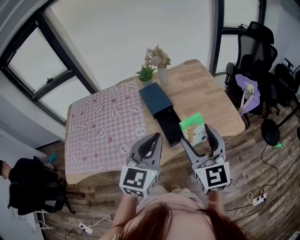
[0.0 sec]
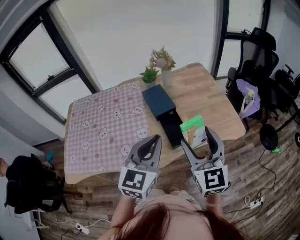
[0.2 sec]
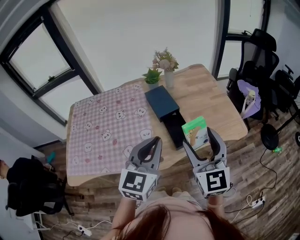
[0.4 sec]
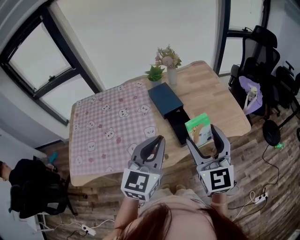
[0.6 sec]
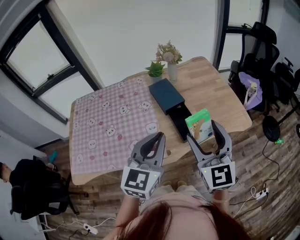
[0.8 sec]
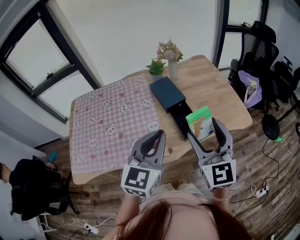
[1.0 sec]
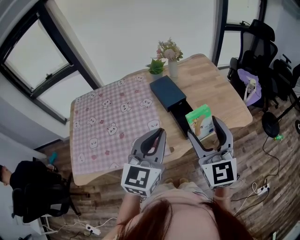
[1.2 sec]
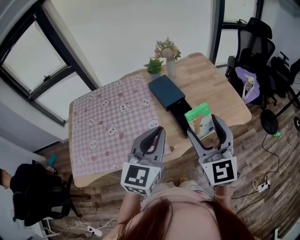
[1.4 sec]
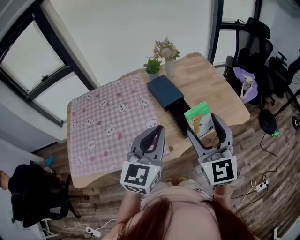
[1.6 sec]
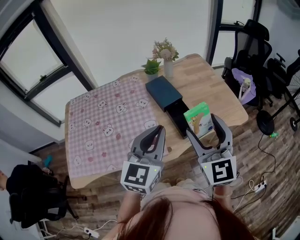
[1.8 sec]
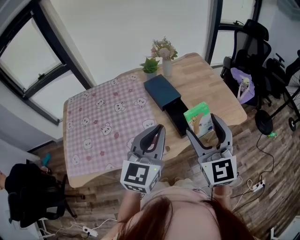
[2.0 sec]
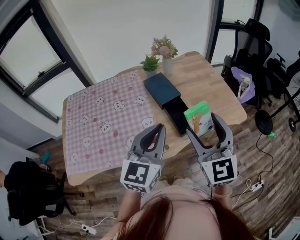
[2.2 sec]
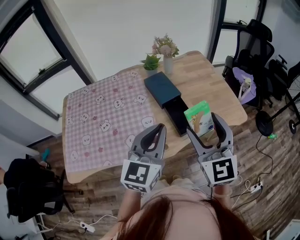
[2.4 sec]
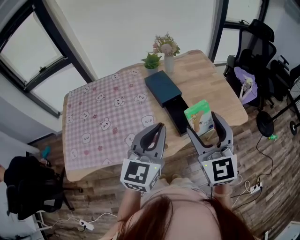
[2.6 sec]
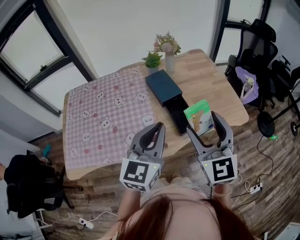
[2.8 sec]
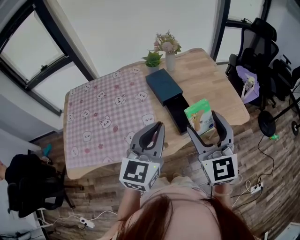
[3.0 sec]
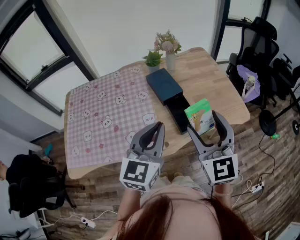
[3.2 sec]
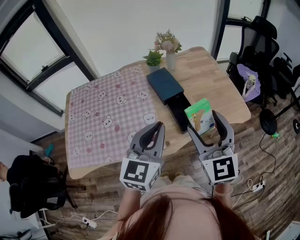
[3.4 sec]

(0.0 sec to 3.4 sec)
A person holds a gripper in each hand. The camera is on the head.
0.0 sec - 1.6 sec: The two grippers go about 10 cm to the left.
1.6 sec - 3.4 sec: The grippers make only small movements.

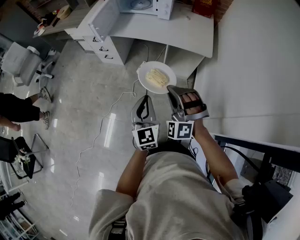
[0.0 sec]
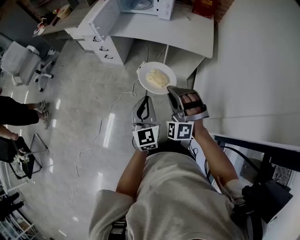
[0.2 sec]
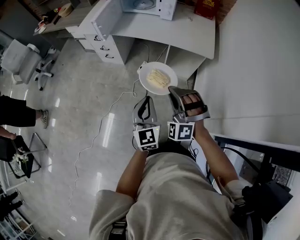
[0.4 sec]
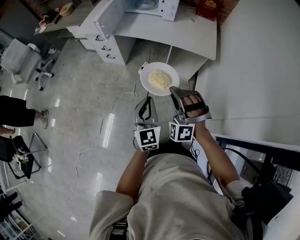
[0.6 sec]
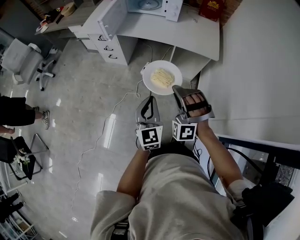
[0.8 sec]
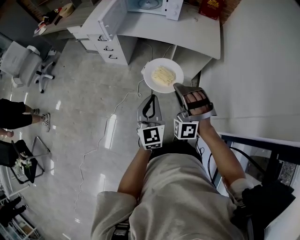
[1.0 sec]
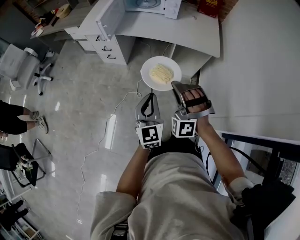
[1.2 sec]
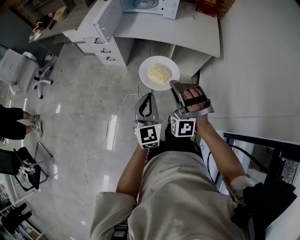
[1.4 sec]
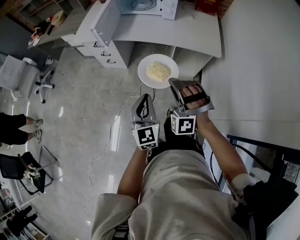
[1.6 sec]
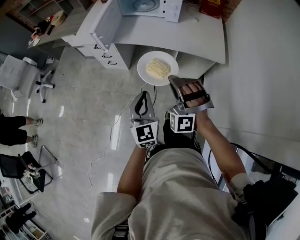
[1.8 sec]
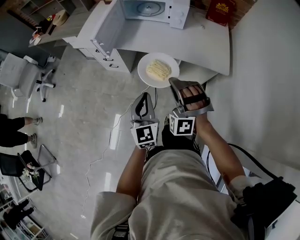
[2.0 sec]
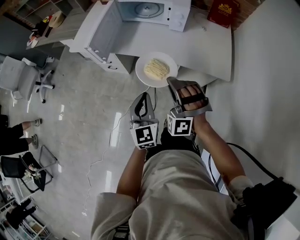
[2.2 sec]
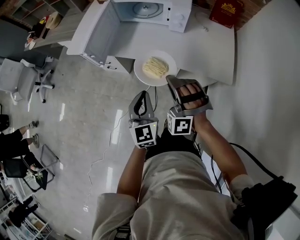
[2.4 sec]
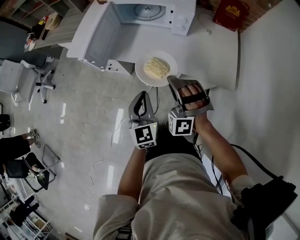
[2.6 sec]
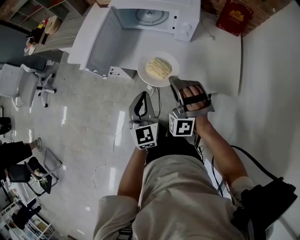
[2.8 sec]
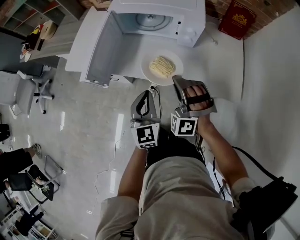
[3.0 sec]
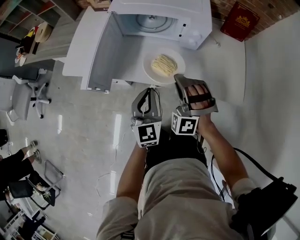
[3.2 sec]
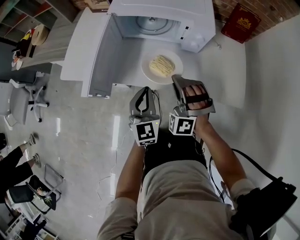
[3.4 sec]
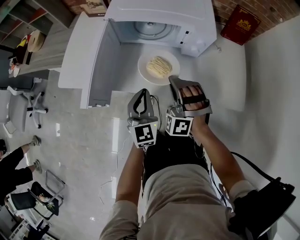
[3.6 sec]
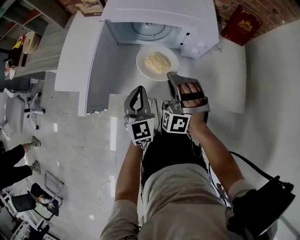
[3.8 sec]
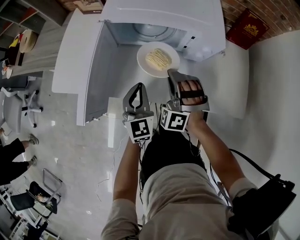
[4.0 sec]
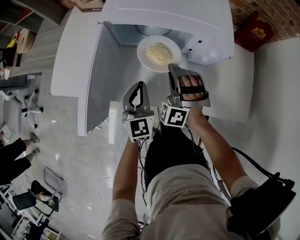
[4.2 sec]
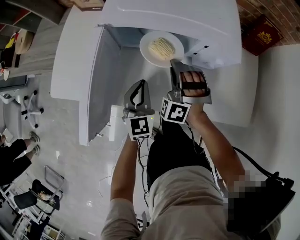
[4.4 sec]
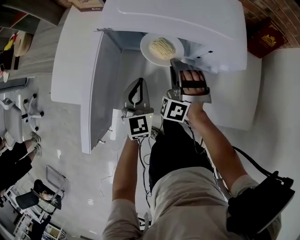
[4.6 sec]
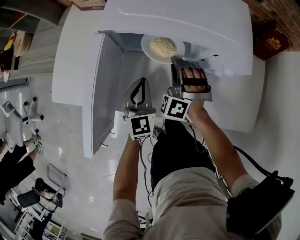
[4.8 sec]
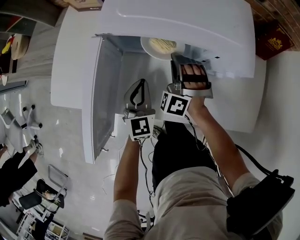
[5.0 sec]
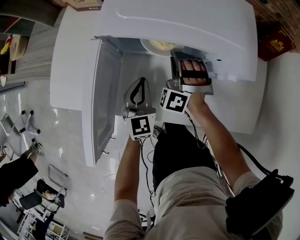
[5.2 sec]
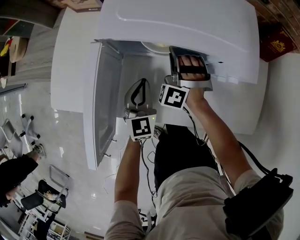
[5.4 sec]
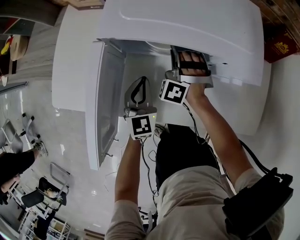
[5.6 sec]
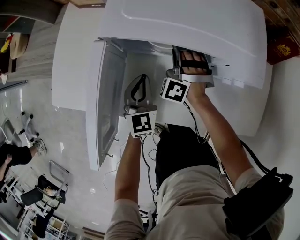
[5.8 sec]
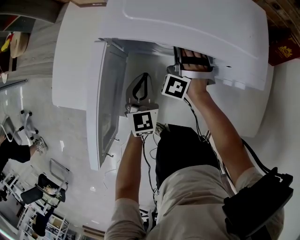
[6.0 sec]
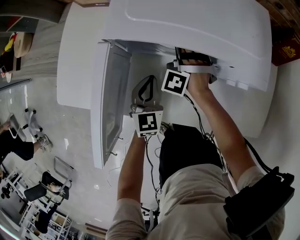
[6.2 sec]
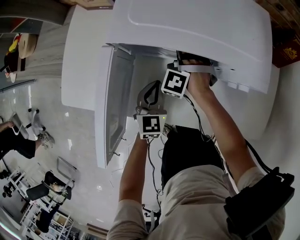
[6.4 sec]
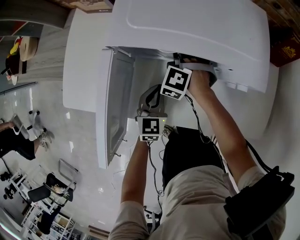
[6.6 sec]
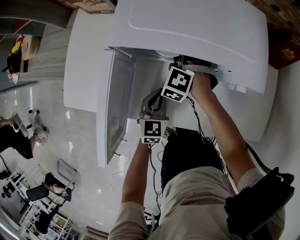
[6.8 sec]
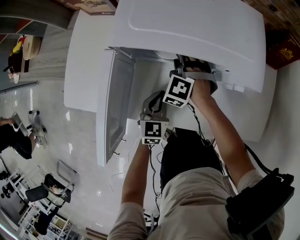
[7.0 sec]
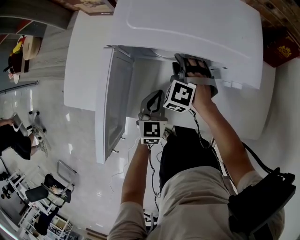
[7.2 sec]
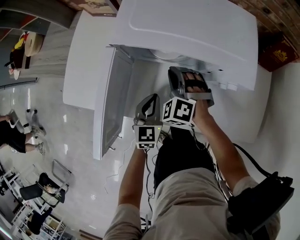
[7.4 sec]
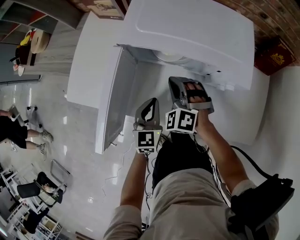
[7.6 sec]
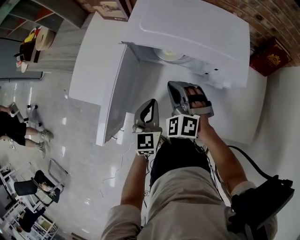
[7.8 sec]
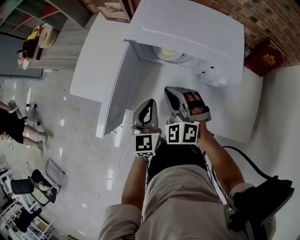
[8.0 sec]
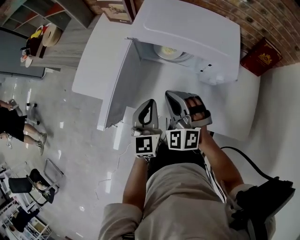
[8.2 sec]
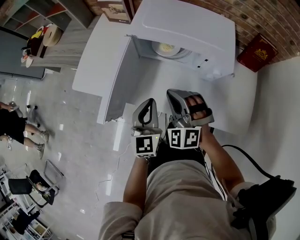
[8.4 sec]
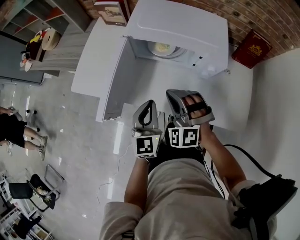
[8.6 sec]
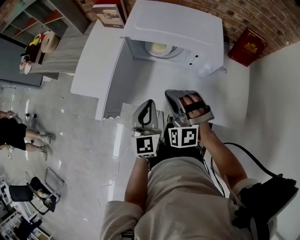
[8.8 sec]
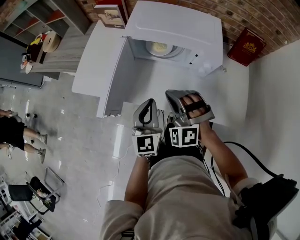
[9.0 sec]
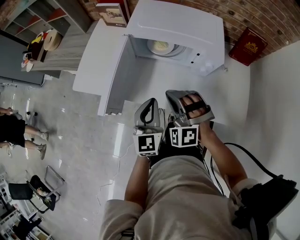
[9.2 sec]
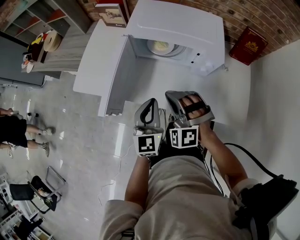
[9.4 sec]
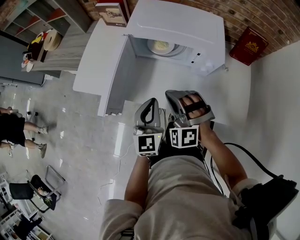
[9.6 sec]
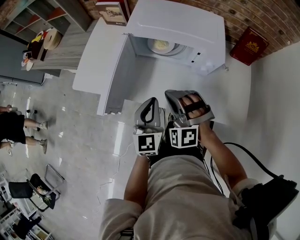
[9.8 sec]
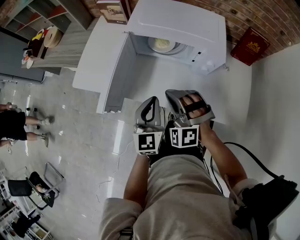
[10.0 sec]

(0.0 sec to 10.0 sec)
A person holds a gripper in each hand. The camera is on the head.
0.0 sec - 1.4 sec: The left gripper shifts by approximately 10 cm.
1.4 sec - 2.8 sec: The left gripper shifts by about 35 cm.
2.8 sec - 4.2 sec: The left gripper changes place by about 30 cm.
4.2 sec - 5.8 sec: The left gripper changes place by approximately 10 cm.
5.8 sec - 7.2 sec: The left gripper changes place by about 5 cm.
7.2 sec - 8.6 sec: The left gripper travels upward by some 15 cm, and rotates some 20 degrees.

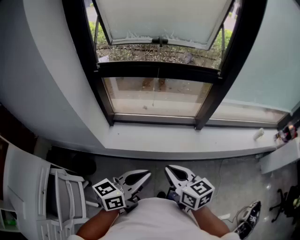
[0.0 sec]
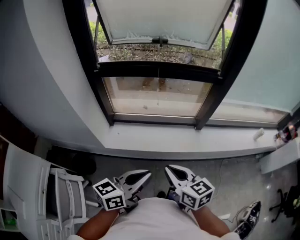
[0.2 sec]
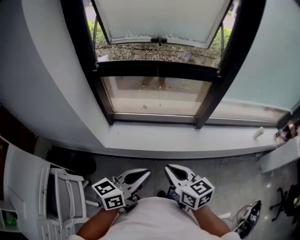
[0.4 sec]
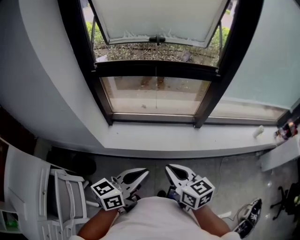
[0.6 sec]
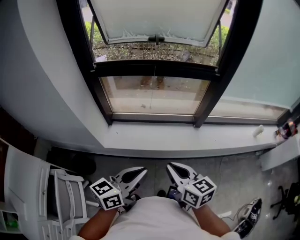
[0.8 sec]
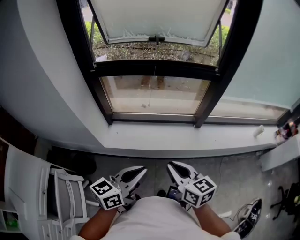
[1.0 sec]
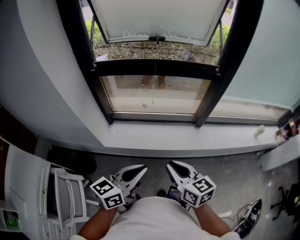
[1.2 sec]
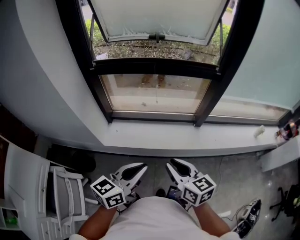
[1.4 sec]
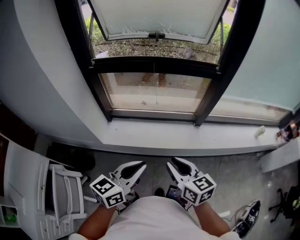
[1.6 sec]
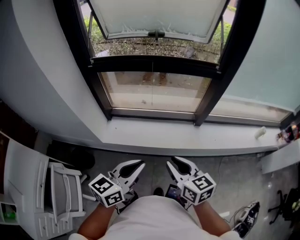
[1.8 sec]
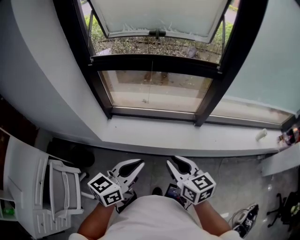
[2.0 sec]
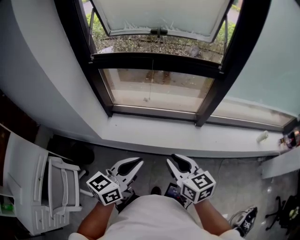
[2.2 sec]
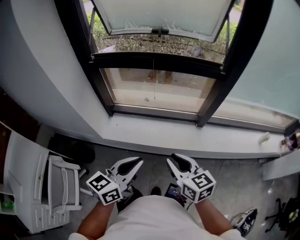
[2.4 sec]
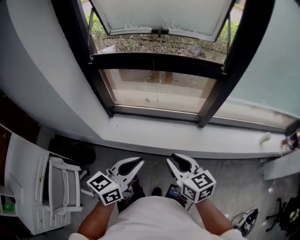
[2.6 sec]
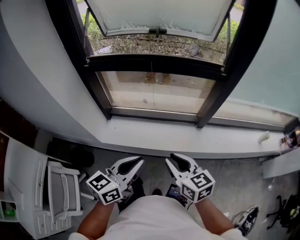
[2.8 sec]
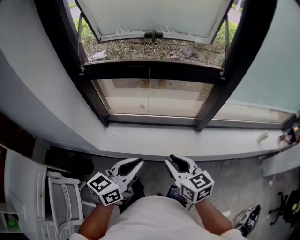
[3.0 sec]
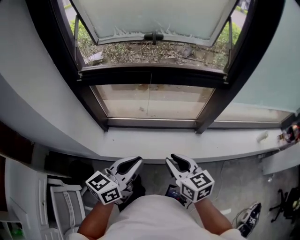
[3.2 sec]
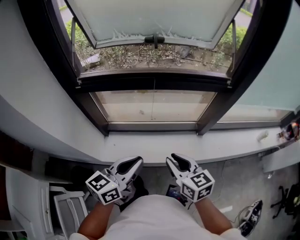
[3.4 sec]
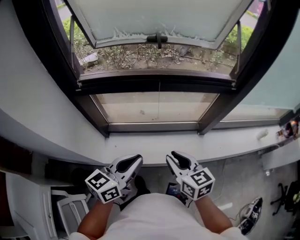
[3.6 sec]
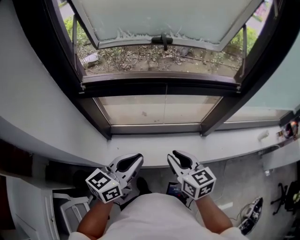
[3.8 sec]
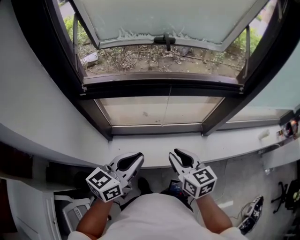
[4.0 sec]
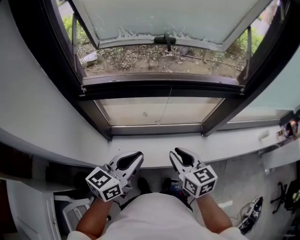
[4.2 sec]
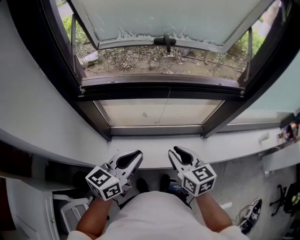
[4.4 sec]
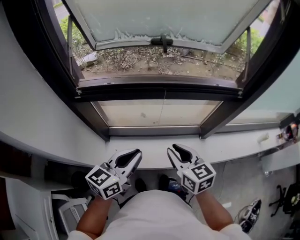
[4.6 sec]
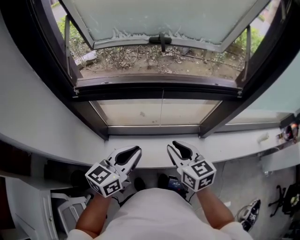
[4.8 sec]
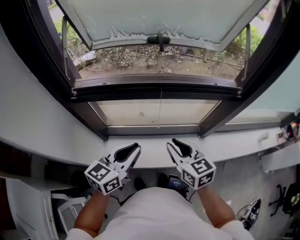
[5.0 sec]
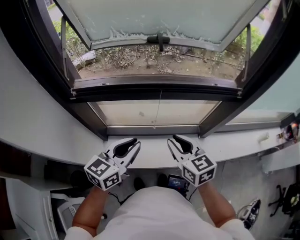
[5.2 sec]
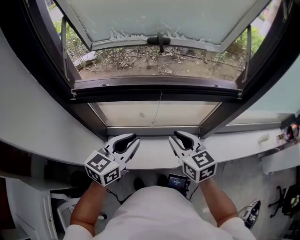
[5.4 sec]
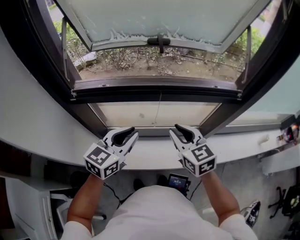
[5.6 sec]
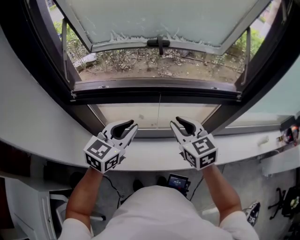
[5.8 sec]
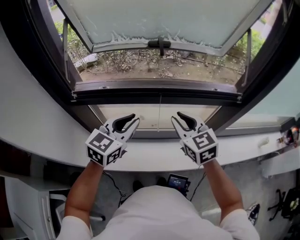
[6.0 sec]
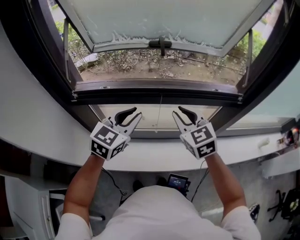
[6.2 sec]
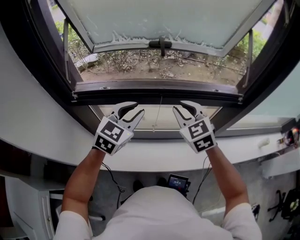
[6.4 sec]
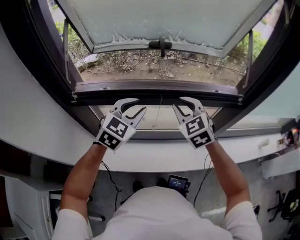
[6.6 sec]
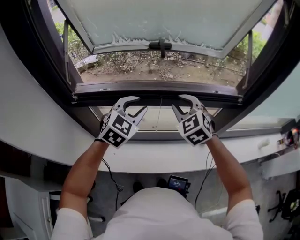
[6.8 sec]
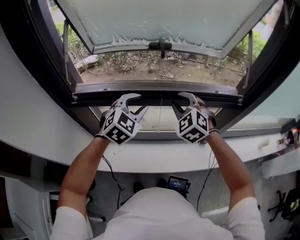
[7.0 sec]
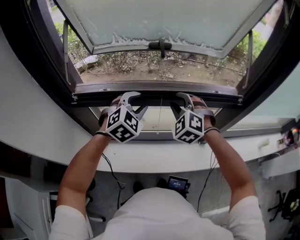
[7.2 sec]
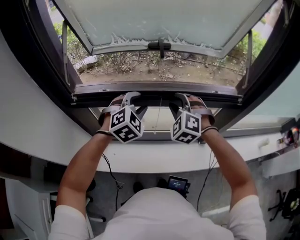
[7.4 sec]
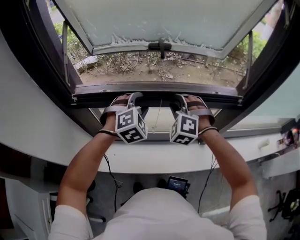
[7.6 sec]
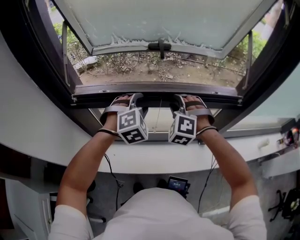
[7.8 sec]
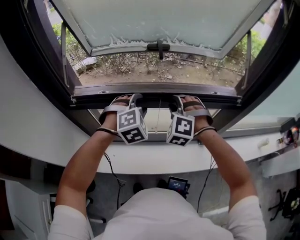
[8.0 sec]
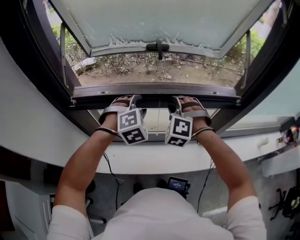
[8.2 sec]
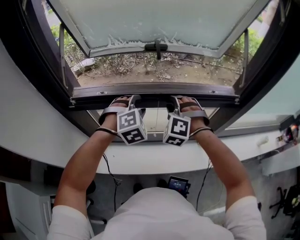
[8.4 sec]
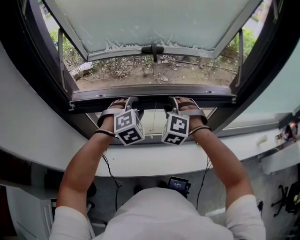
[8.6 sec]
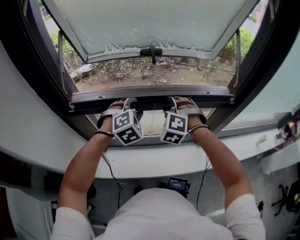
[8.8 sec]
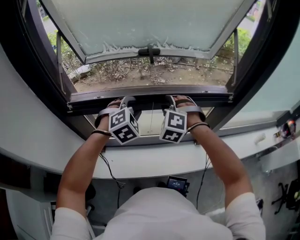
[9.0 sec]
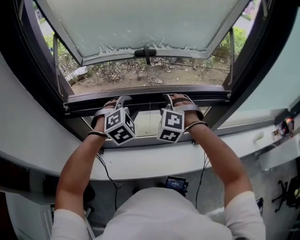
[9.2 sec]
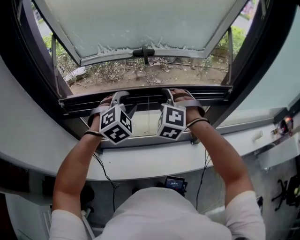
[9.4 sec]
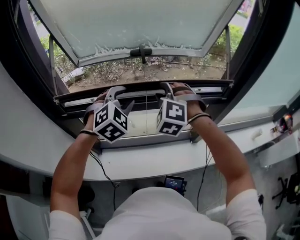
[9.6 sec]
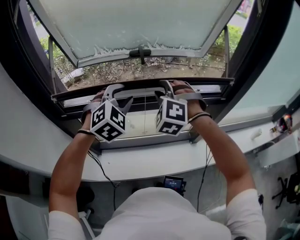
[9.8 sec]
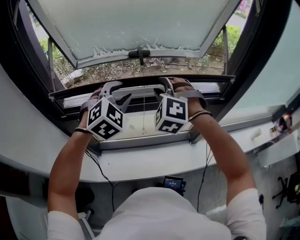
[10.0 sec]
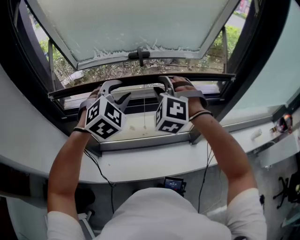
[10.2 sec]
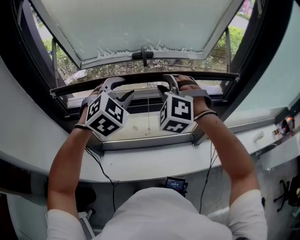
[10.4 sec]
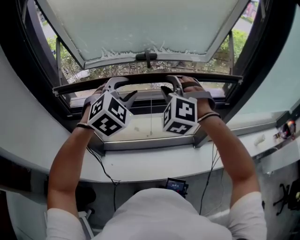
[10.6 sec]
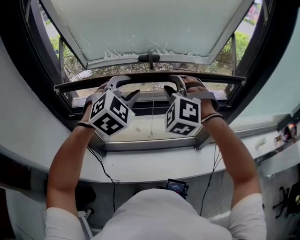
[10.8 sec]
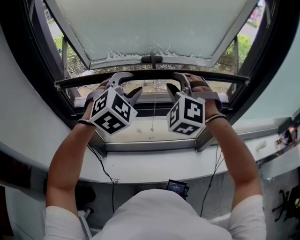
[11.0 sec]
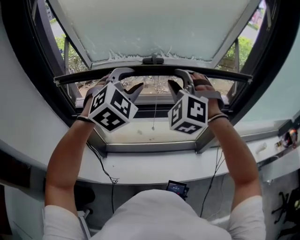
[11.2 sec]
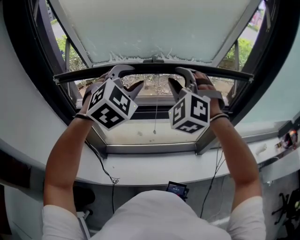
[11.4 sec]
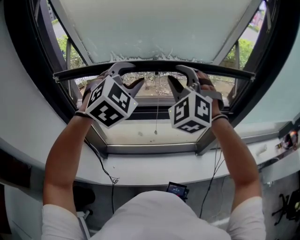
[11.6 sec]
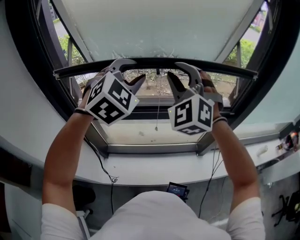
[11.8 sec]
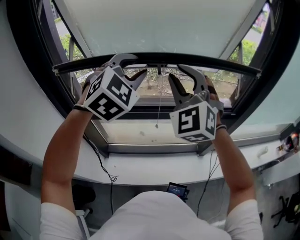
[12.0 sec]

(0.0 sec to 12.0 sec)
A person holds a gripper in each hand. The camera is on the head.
0.0 sec - 1.6 sec: The right gripper shifts by approximately 5 cm.
1.6 sec - 3.0 sec: Both grippers travel together forward, about 10 cm.
3.0 sec - 4.4 sec: Both grippers travel together forward and to the left, approximately 20 cm.
4.4 sec - 6.0 sec: The right gripper heads forward and upward, covering roughly 15 cm, and swivels about 20 degrees; the left gripper travels forward by approximately 15 cm, and swivels some 20 degrees.
6.0 sec - 7.6 sec: Both grippers move forward, about 10 cm. The right gripper twists approximately 60 degrees counterclockwise, seen from behind. The left gripper rotates around the line of its fingers by some 50 degrees, clockwise from behind, and opens its fingers.
7.6 sec - 9.0 sec: The grippers move only a little.
9.0 sec - 10.4 sec: Both grippers travel together upward, some 15 cm.
10.4 sec - 12.0 sec: Both grippers move upward, about 10 cm. The right gripper turns by about 30 degrees.
